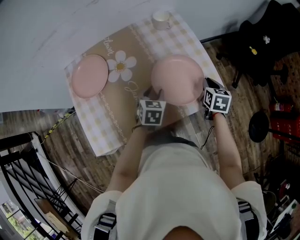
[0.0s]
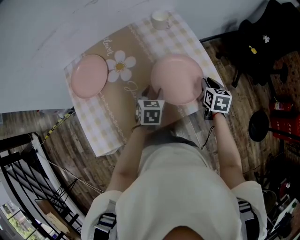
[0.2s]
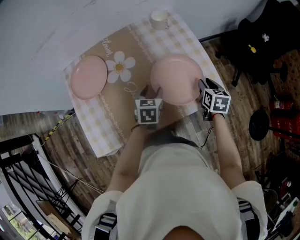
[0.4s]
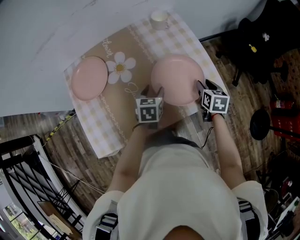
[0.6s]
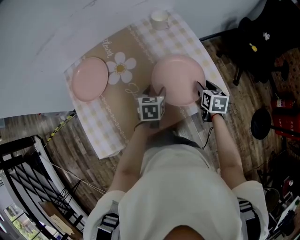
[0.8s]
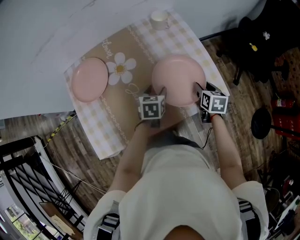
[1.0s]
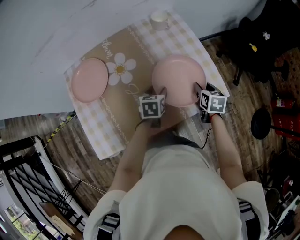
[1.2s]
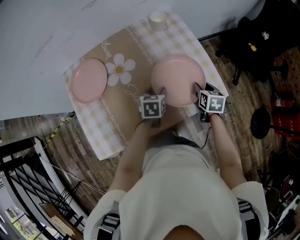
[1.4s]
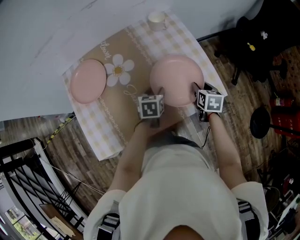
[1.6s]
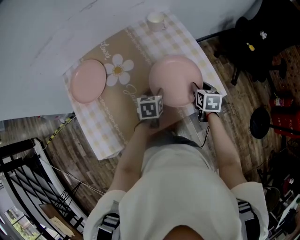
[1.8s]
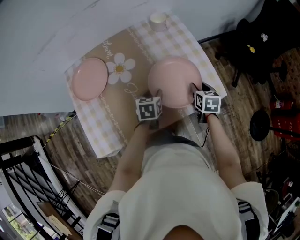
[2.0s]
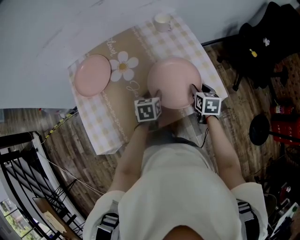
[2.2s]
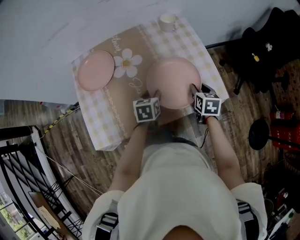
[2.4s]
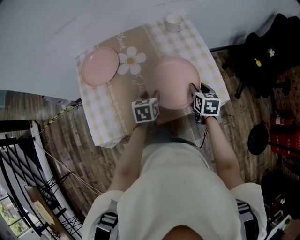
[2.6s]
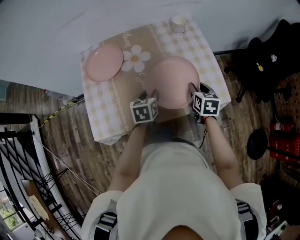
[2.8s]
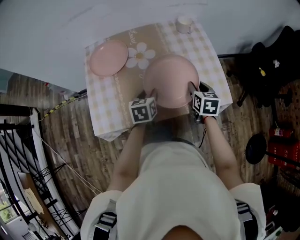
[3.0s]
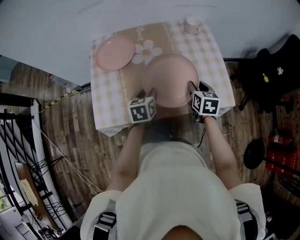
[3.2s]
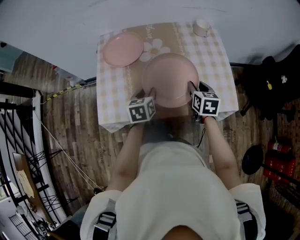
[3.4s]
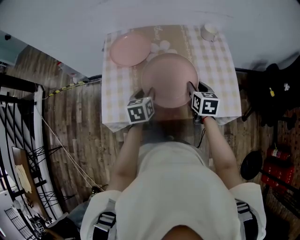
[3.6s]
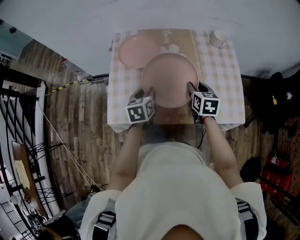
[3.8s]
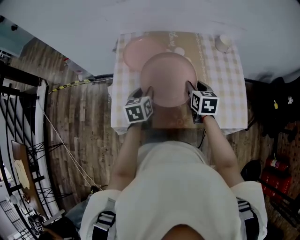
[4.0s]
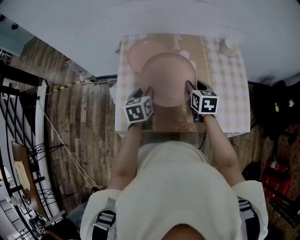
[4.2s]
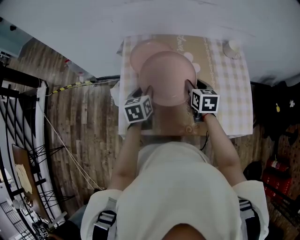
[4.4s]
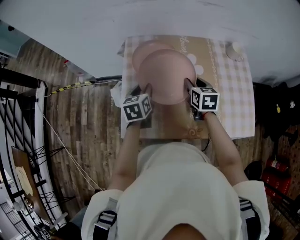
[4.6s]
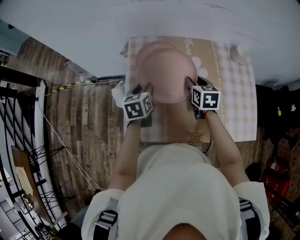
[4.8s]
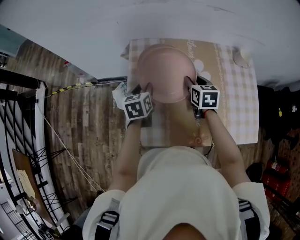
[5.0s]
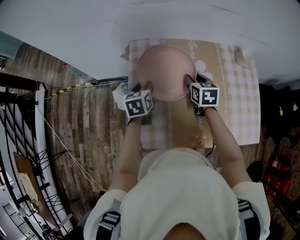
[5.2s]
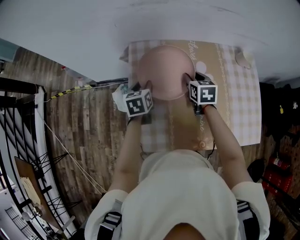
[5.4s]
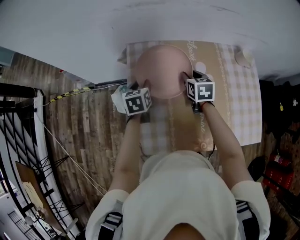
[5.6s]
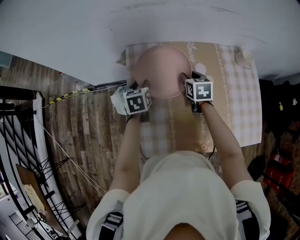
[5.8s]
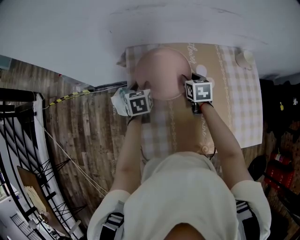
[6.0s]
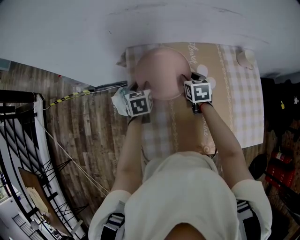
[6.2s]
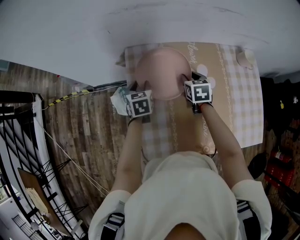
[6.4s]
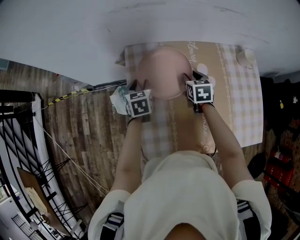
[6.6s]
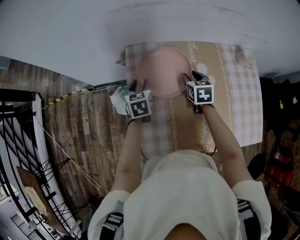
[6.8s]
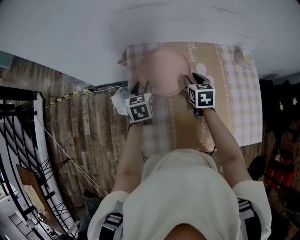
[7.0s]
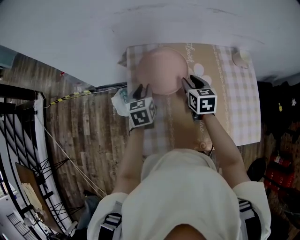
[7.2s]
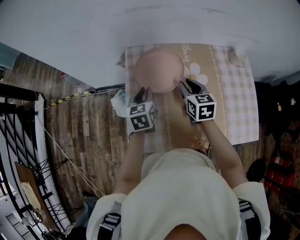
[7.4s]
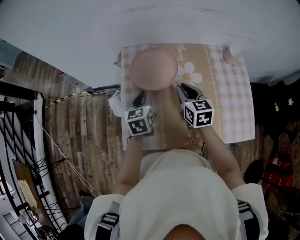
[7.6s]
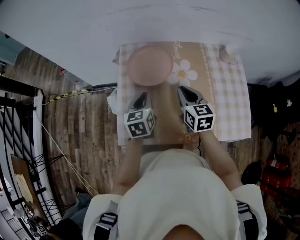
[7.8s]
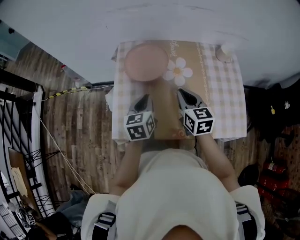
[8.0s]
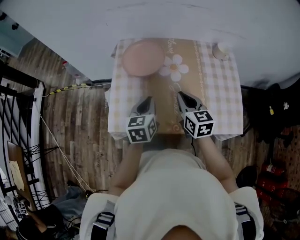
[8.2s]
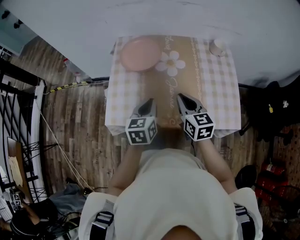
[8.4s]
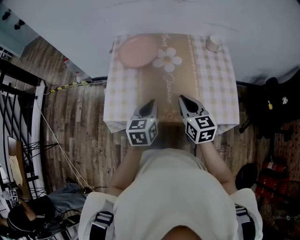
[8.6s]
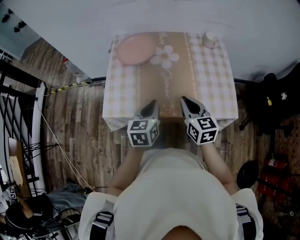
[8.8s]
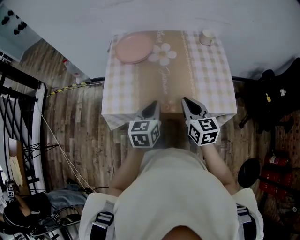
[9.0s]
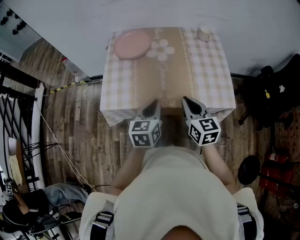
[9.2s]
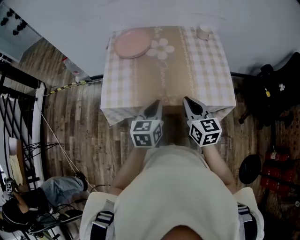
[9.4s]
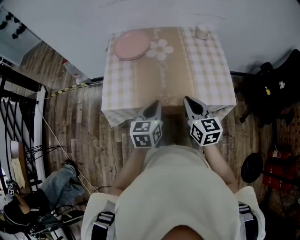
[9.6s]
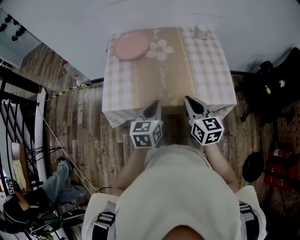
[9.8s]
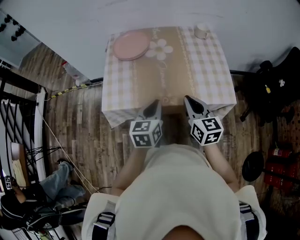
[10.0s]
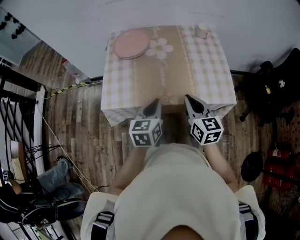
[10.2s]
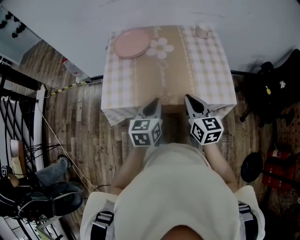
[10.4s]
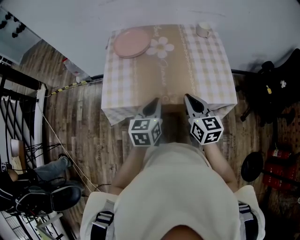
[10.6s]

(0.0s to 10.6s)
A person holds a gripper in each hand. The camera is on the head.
0.0s - 1.6s: The right gripper opens up.
1.6s - 3.0s: The left gripper is displaced to the left, backward and upward by approximately 15 cm, and rotates some 20 degrees. The right gripper moves to the left and upward, about 10 cm.
3.0s - 4.6s: The left gripper heads to the left, covering some 25 cm; the right gripper moves to the left and forward, approximately 30 cm.
4.6s - 6.0s: The grippers both shift forward and downward by some 15 cm.
6.0s - 7.6s: The two grippers go about 15 cm backward and upward. The left gripper closes up.
7.6s - 9.0s: Both grippers travel together backward and to the right, approximately 30 cm.
9.0s - 10.6s: The grippers make only small movements.

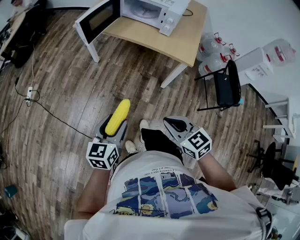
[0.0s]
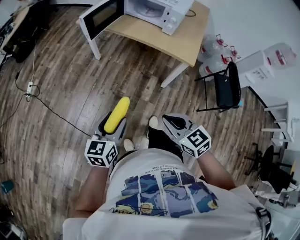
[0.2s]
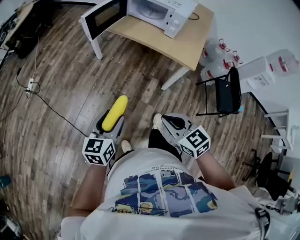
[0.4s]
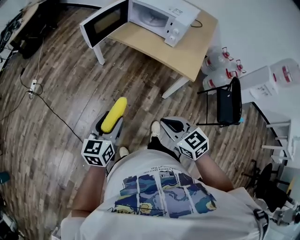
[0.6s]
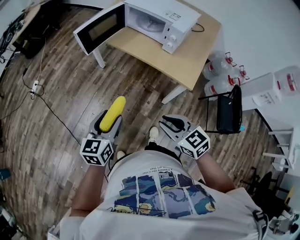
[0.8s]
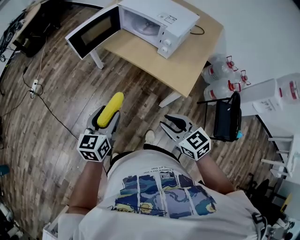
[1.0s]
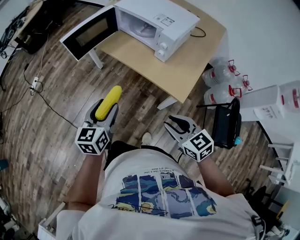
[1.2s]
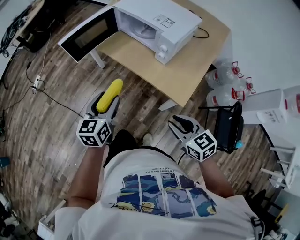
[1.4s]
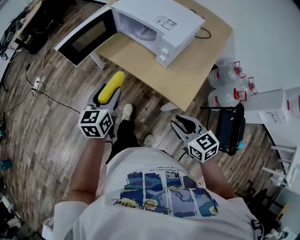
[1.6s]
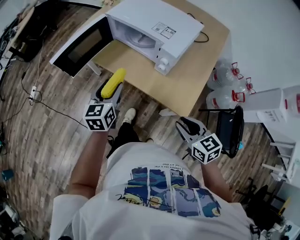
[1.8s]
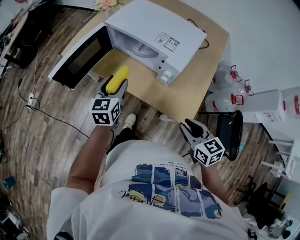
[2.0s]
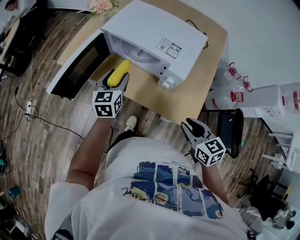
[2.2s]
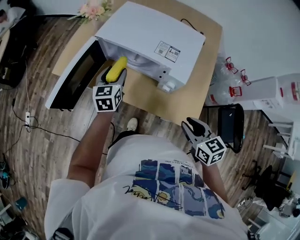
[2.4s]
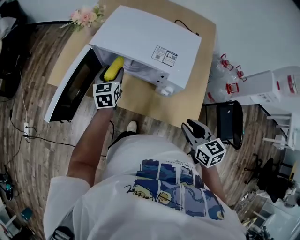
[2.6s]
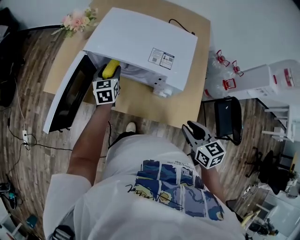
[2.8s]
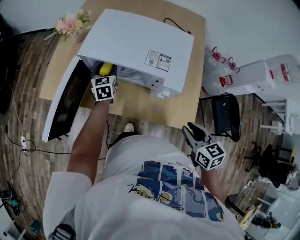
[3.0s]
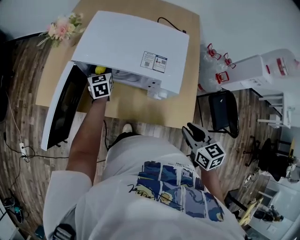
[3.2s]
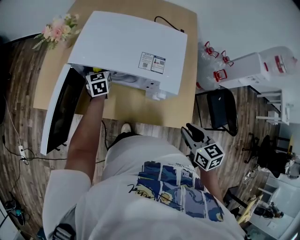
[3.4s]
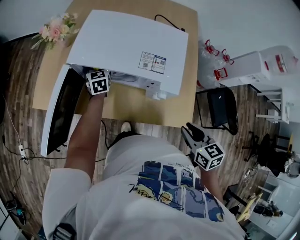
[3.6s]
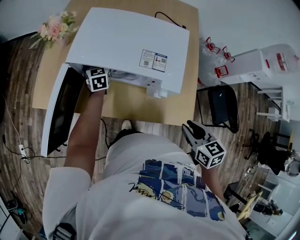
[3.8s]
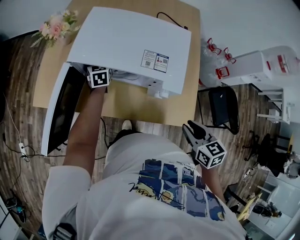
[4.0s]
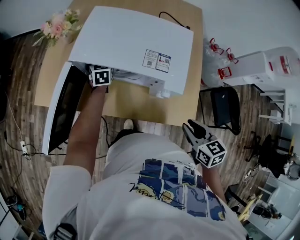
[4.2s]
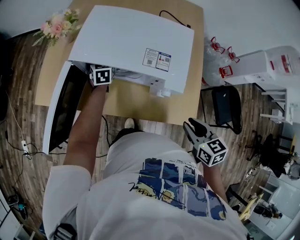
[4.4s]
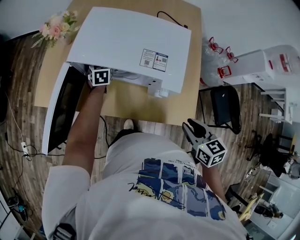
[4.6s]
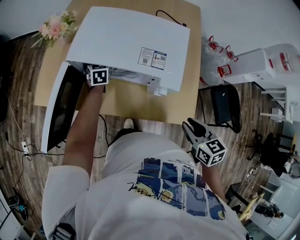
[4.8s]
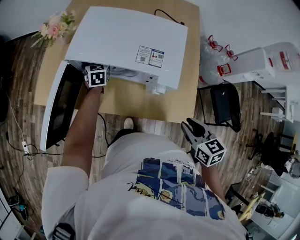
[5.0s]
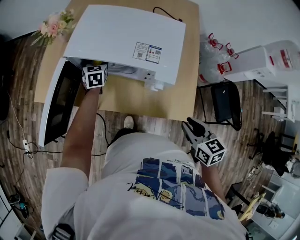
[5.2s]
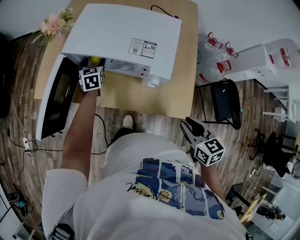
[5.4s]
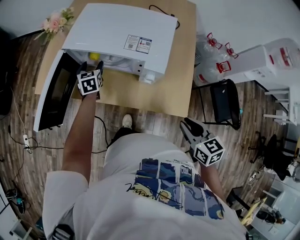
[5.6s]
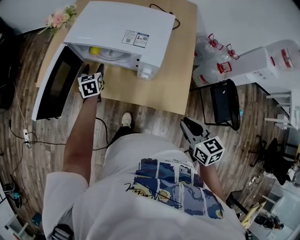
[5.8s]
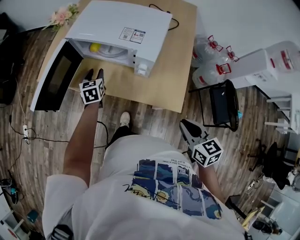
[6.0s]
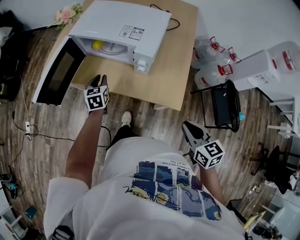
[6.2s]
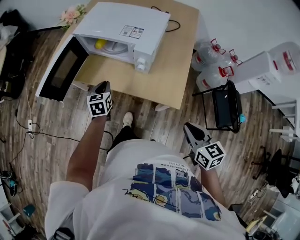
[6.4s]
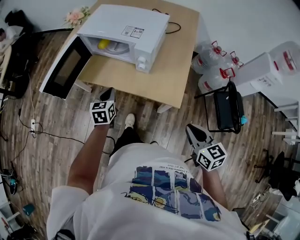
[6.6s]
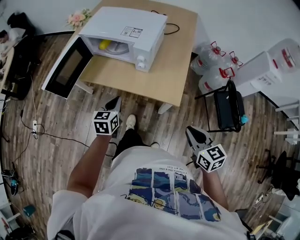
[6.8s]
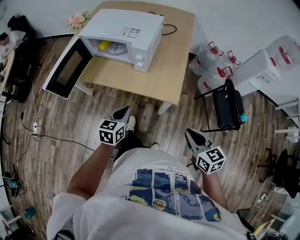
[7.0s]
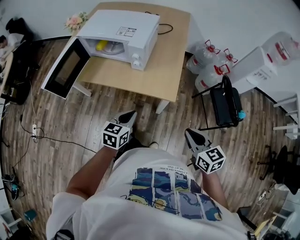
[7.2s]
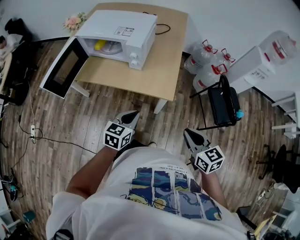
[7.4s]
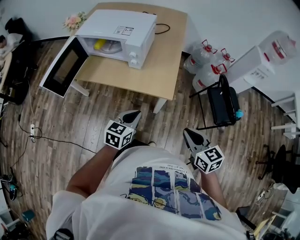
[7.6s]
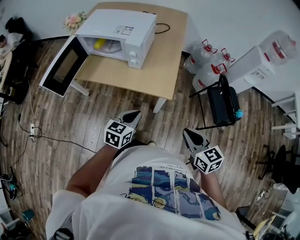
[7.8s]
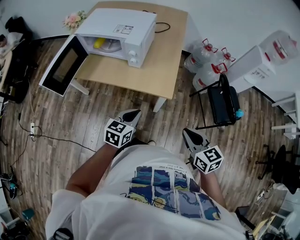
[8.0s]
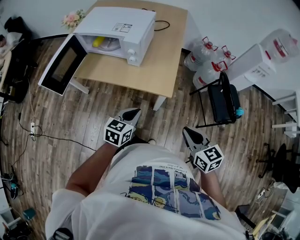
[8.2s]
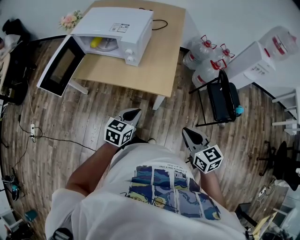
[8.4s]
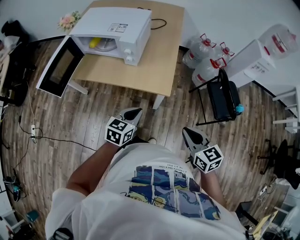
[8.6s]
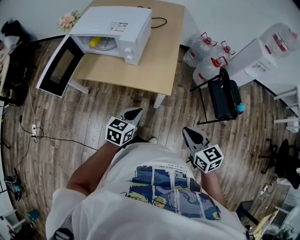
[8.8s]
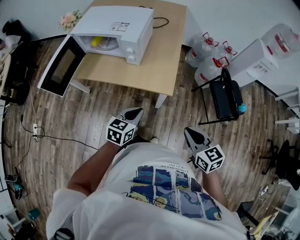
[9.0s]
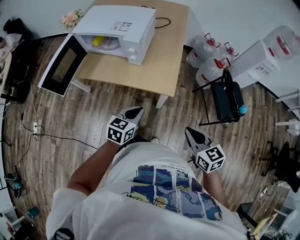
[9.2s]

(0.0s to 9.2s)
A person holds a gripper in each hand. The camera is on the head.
0.0s - 1.6s: The left gripper travels forward and to the right by approximately 40 cm. Meanwhile the right gripper shifts approximately 35 cm to the right and forward.
1.6s - 3.0s: The left gripper moves forward, about 40 cm; the right gripper goes approximately 15 cm forward, and changes its angle by some 40 degrees.
3.0s - 4.6s: The left gripper is displaced forward by about 5 cm.
4.6s - 6.2s: The right gripper heads backward and to the right, covering about 15 cm; the left gripper goes roughly 25 cm backward, and closes its fingers.
6.2s - 7.6s: The right gripper goes some 15 cm backward; the left gripper travels backward and to the right by roughly 35 cm, and changes its angle by about 40 degrees.
7.6s - 9.2s: There are only small adjustments of the grippers.

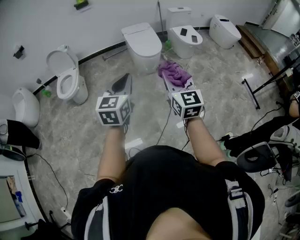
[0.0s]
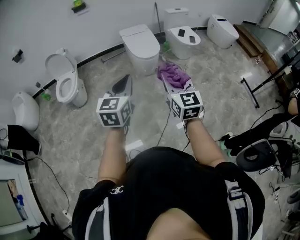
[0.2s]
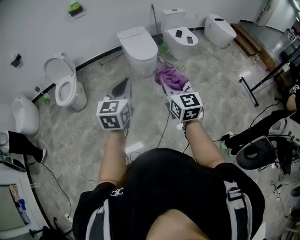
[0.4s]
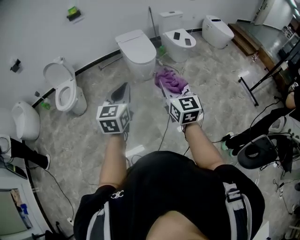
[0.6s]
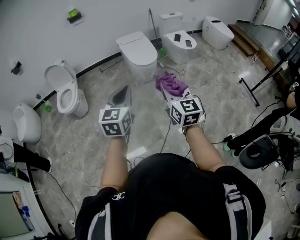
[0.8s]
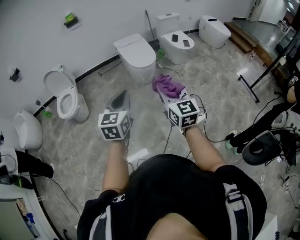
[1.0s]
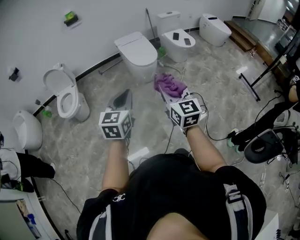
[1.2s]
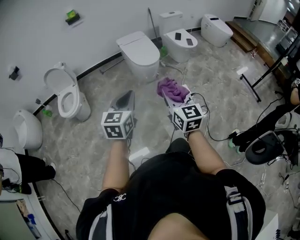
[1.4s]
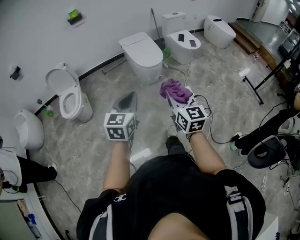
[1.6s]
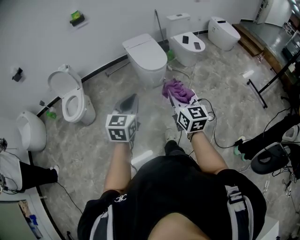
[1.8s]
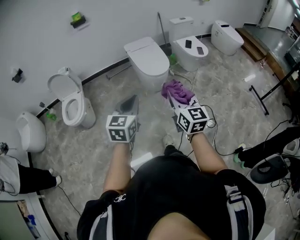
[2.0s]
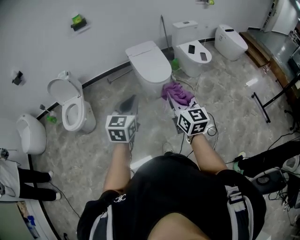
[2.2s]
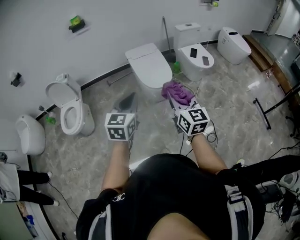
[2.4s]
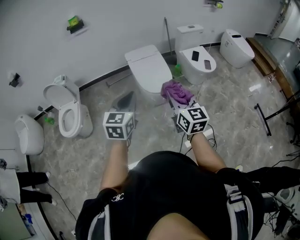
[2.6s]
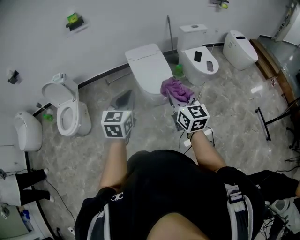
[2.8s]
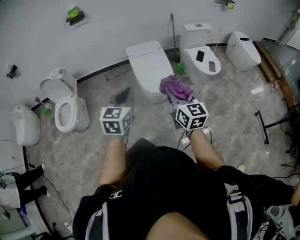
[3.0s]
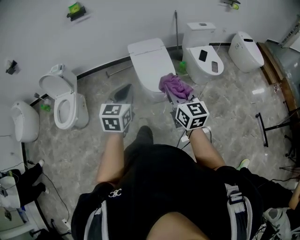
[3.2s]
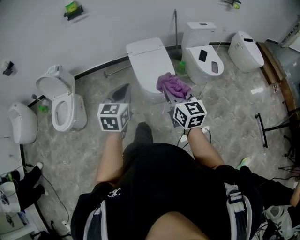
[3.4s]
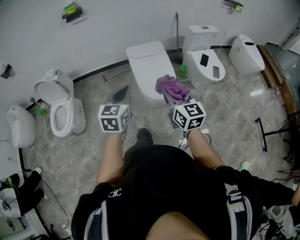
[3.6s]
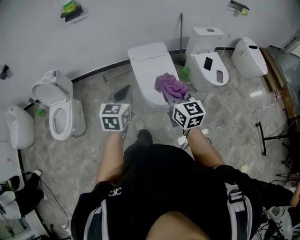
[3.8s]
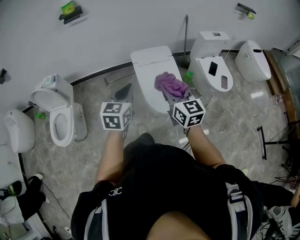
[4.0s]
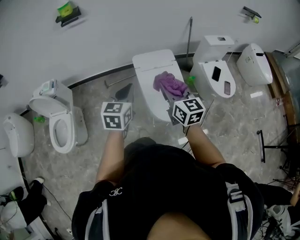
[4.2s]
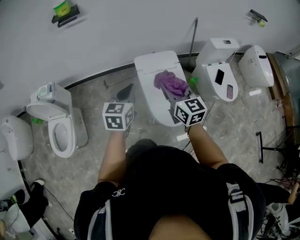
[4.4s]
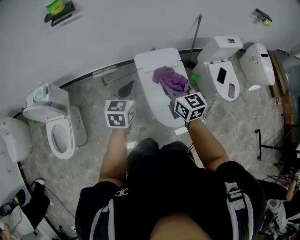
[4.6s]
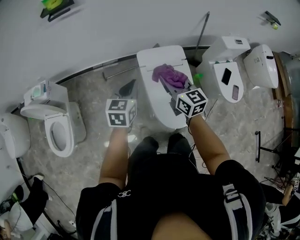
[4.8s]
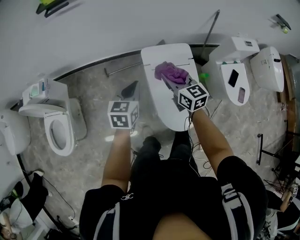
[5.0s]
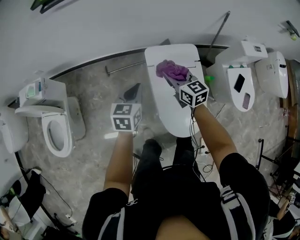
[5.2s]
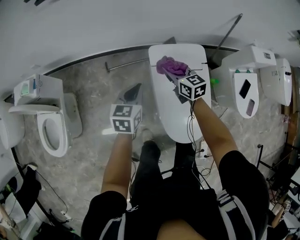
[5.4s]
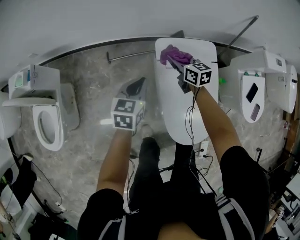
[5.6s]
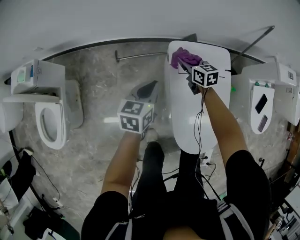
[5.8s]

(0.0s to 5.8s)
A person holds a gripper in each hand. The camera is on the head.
0.0s - 1.4s: The grippers both shift to the left by about 5 cm.
1.4s - 2.8s: The pair of grippers is taken forward, roughly 40 cm.
2.8s - 4.4s: Both grippers are carried forward, approximately 50 cm.
4.4s - 5.8s: The grippers both shift downward and forward by roughly 50 cm. The left gripper changes its angle by about 20 degrees. The right gripper turns by about 30 degrees.
